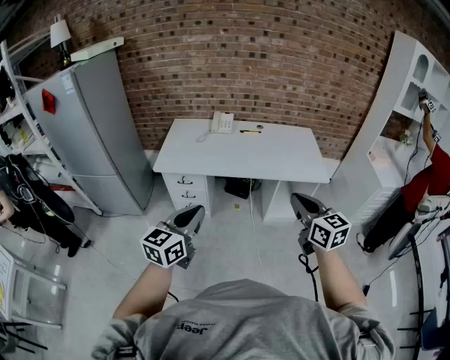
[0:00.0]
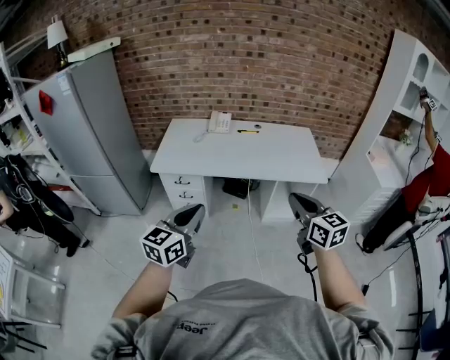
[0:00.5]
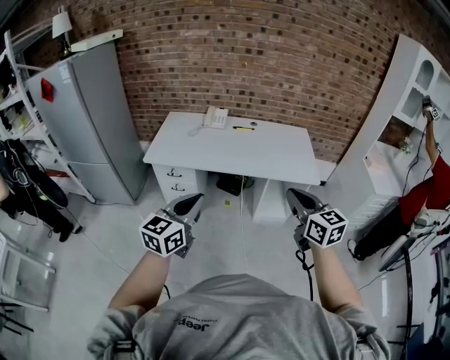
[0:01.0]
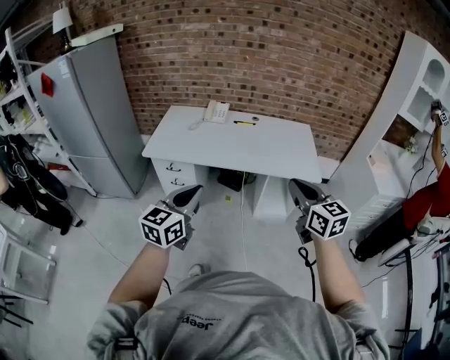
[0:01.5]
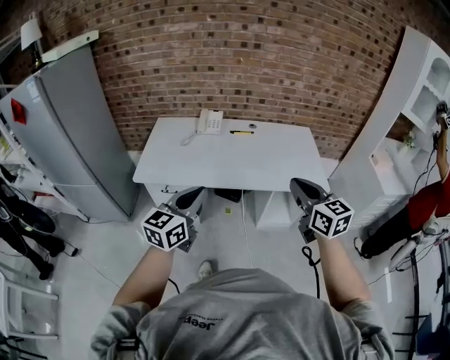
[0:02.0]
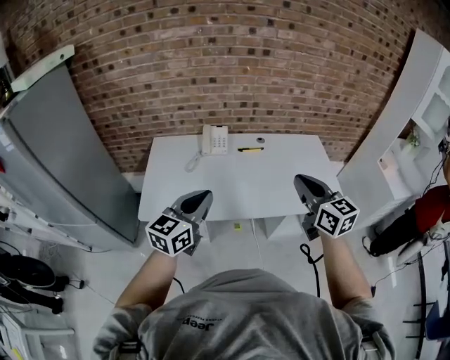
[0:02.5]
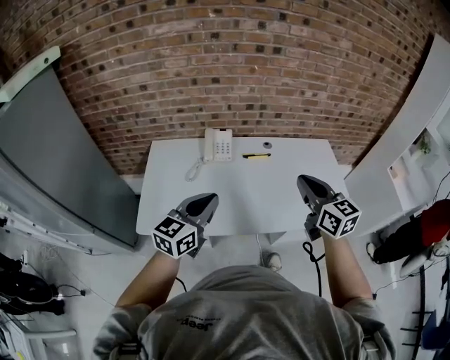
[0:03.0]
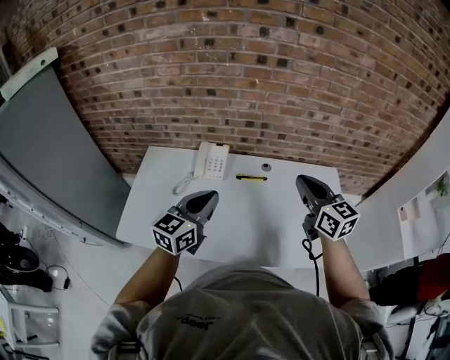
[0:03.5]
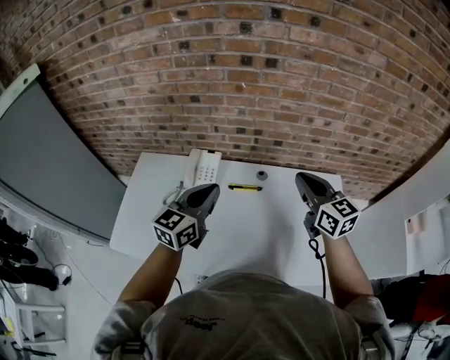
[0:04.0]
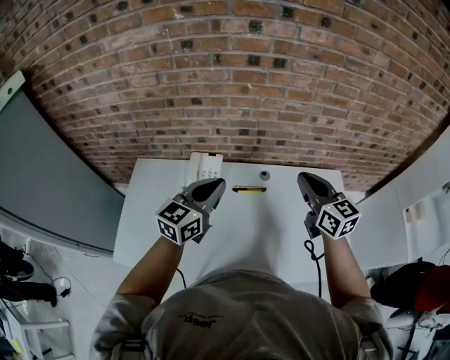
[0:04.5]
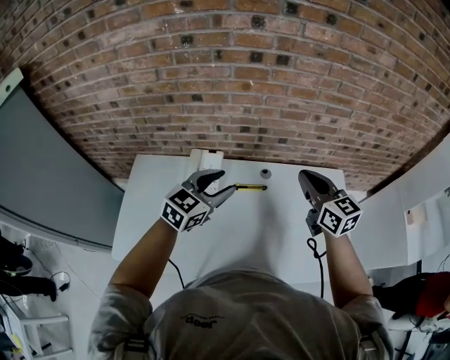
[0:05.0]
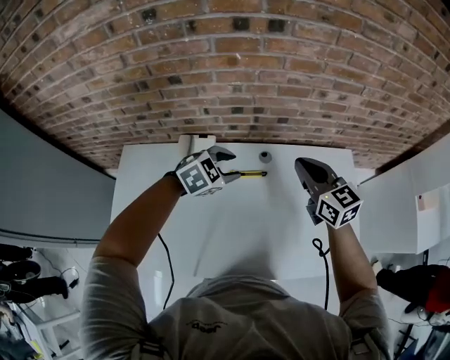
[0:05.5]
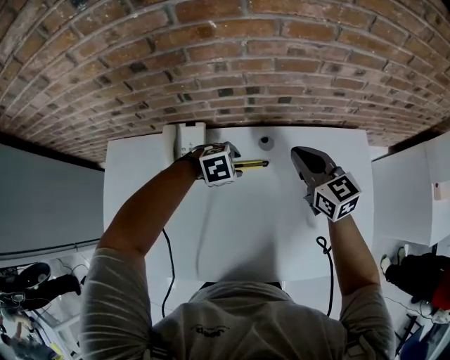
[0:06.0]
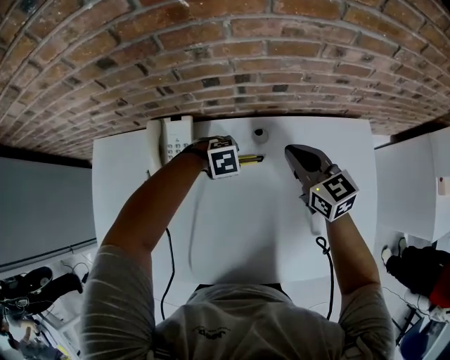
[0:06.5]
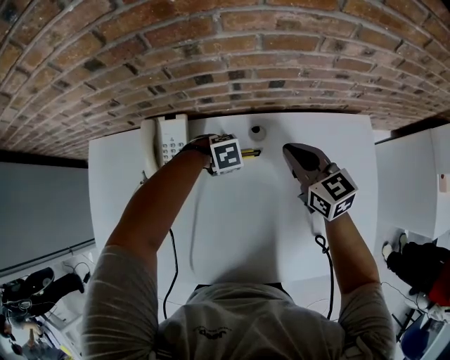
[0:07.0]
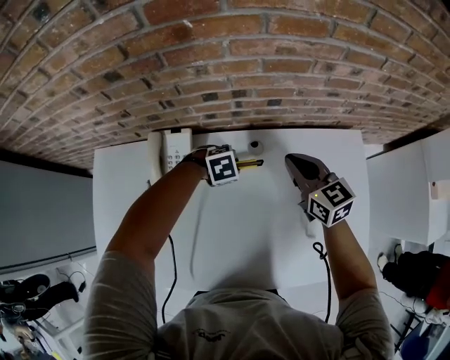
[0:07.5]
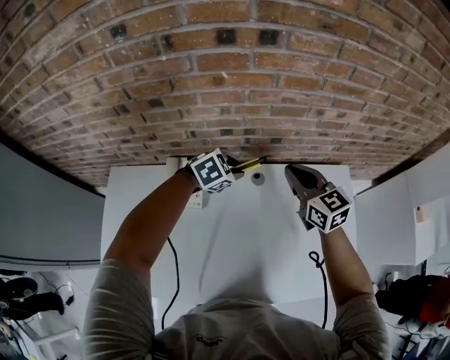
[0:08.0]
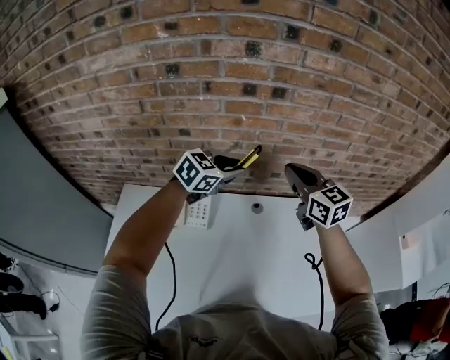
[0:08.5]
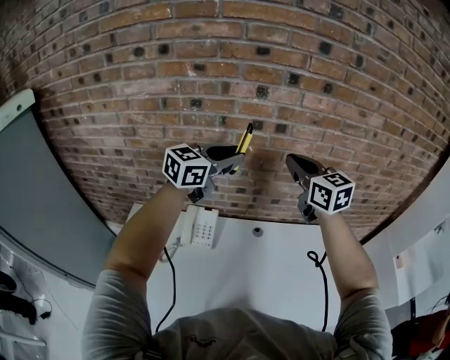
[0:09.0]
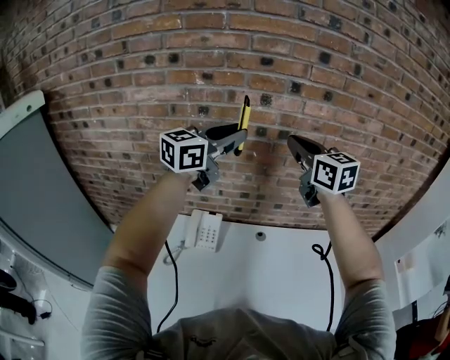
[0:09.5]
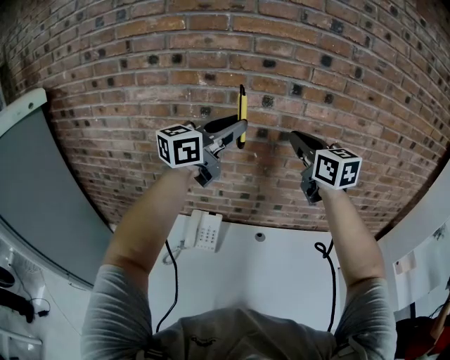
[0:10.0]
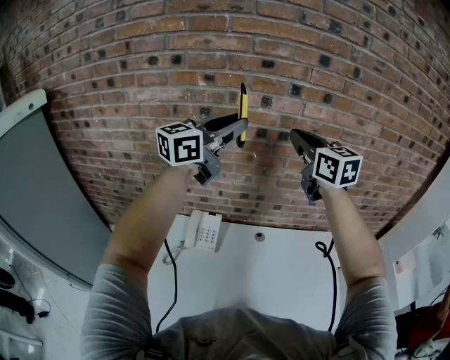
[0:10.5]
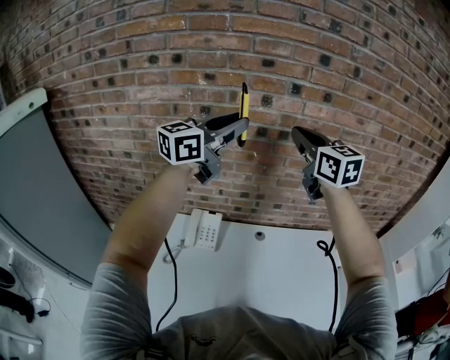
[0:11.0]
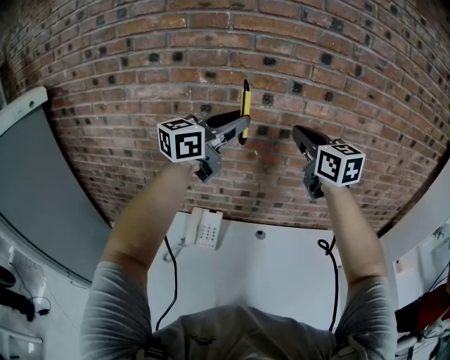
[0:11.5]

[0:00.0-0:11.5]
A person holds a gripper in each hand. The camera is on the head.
0:00.0 to 0:02.0: Both grippers move forward, some 20 cm.
0:02.0 to 0:04.0: The pair of grippers is taken forward, approximately 60 cm.
0:04.0 to 0:06.0: The right gripper moves downward, approximately 20 cm; the left gripper moves downward, some 30 cm, angles its fingers downward, by about 60 degrees, and opens up.
0:06.0 to 0:07.5: The left gripper shifts about 5 cm downward.
0:07.5 to 0:09.5: Both grippers travel together upward, roughly 50 cm. The right gripper turns by approximately 20 degrees, while the left gripper points its fingers approximately 80 degrees further upward.
0:09.5 to 0:11.5: The grippers make only small movements.

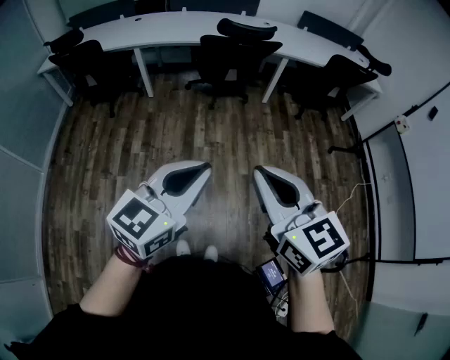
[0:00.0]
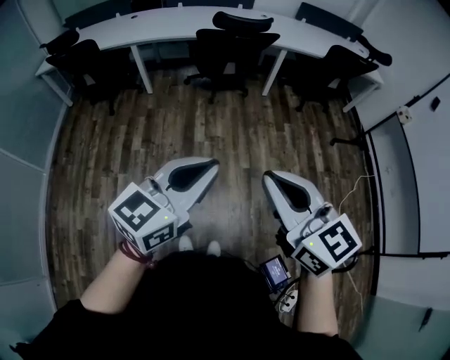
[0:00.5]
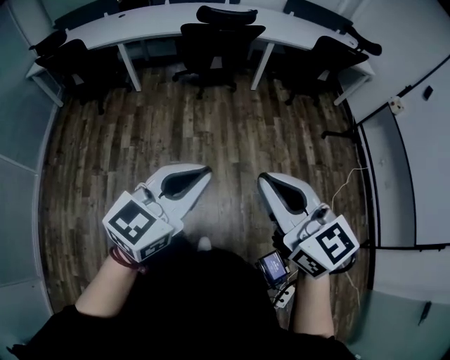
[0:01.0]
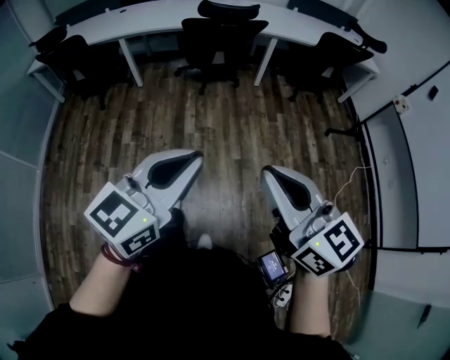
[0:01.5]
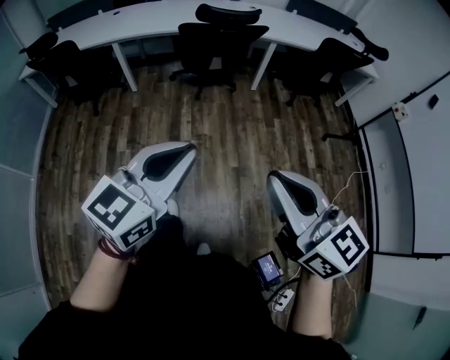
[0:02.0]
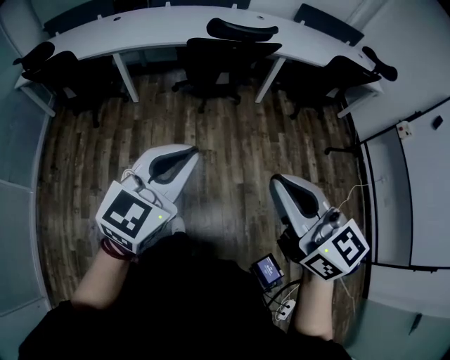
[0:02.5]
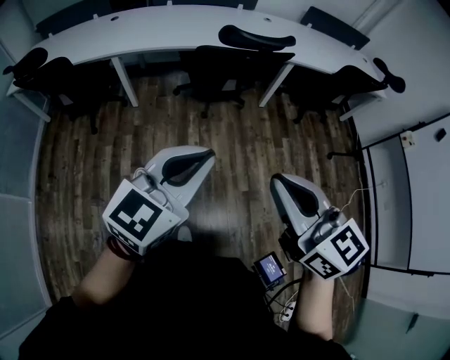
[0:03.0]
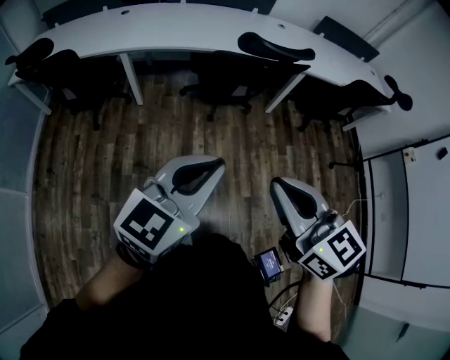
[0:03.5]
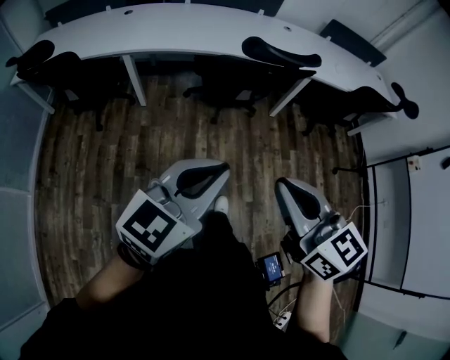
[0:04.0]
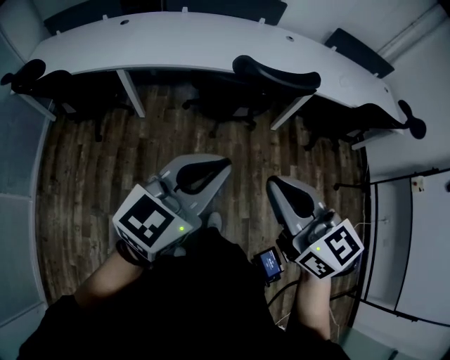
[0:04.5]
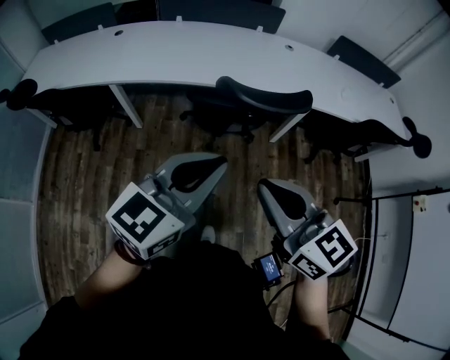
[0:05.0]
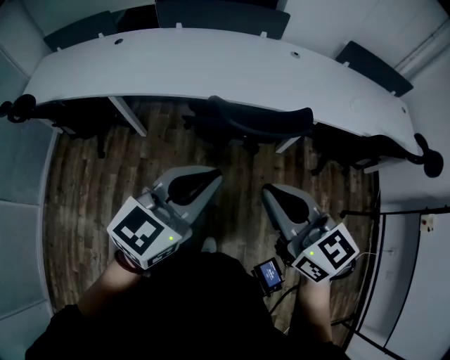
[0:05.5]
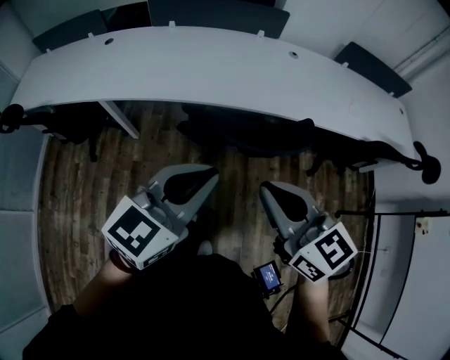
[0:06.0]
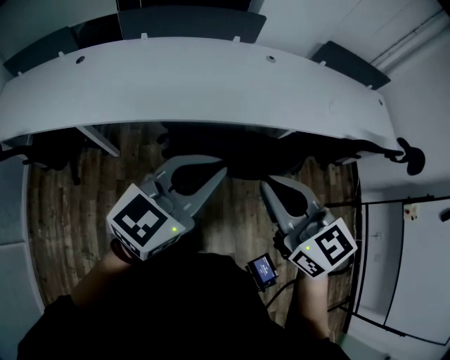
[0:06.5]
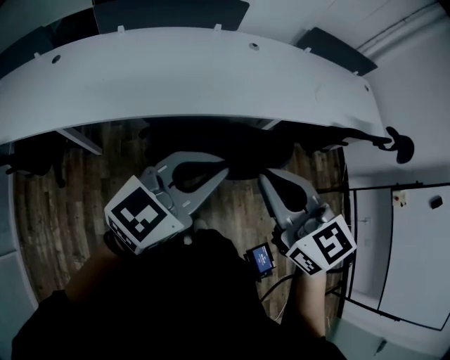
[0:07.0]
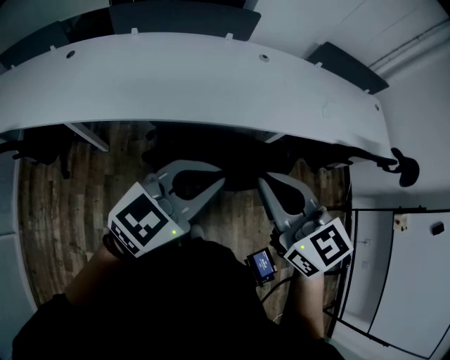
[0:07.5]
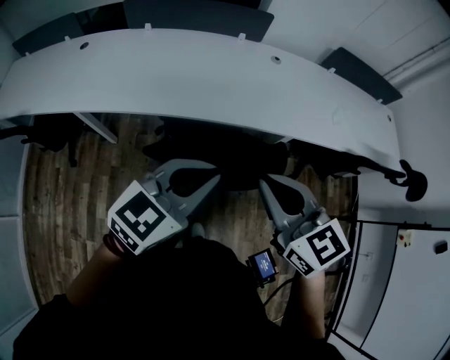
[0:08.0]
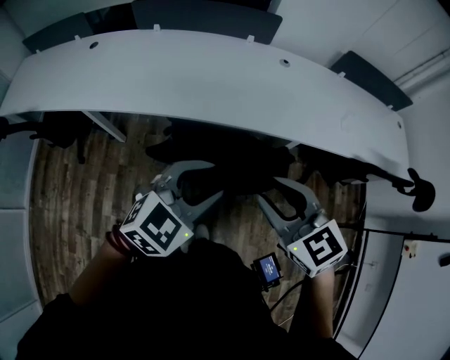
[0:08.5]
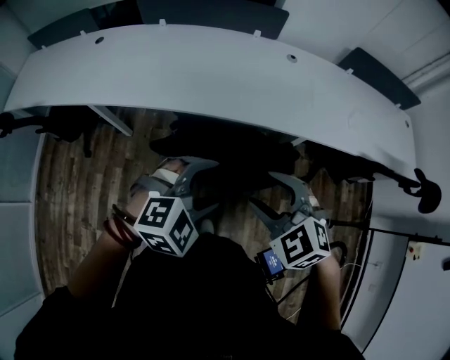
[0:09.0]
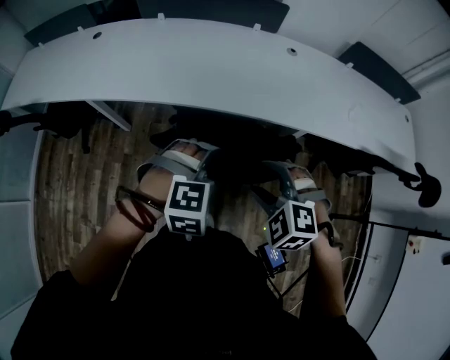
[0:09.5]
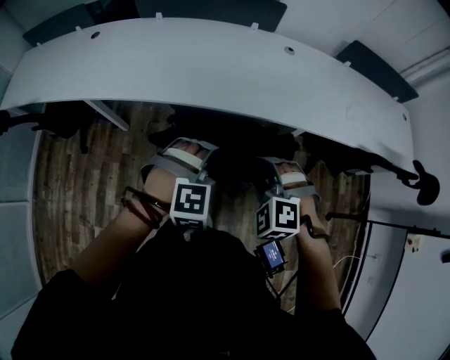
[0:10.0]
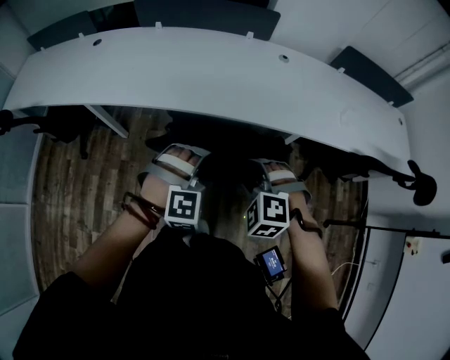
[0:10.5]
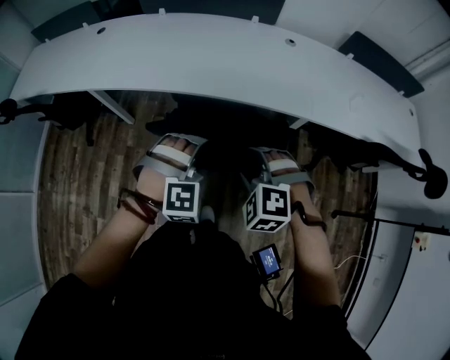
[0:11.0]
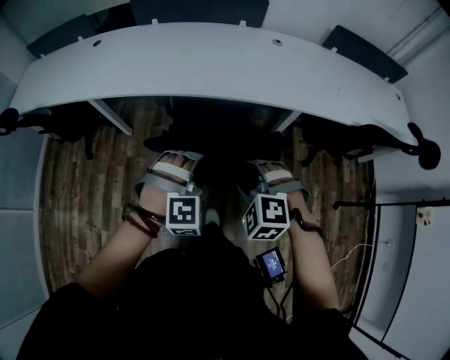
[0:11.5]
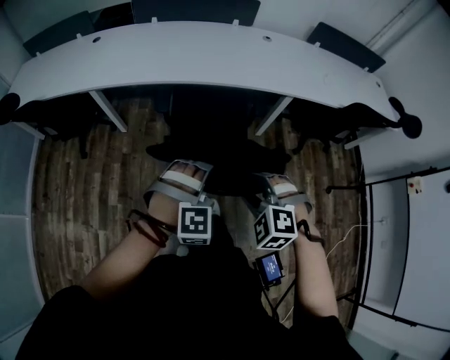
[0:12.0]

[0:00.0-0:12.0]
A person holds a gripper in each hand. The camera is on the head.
0:00.0 to 0:02.0: The right gripper travels to the right by roughly 10 cm. The left gripper is displaced forward by roughly 10 cm.
0:02.0 to 0:04.0: The two grippers go roughly 35 cm forward and to the left.
0:04.0 to 0:06.0: The pair of grippers is taken forward, roughly 40 cm.
0:06.0 to 0:08.0: Both grippers travel together forward and to the right, roughly 15 cm.
0:08.0 to 0:10.0: Both grippers travel together downward, roughly 15 cm. The right gripper rolls counterclockwise, seen from behind, by some 60 degrees, and opens. The left gripper tilts its fingers approximately 40 degrees downward, and opens up.
0:10.0 to 0:12.0: Both grippers move backward, roughly 30 cm.

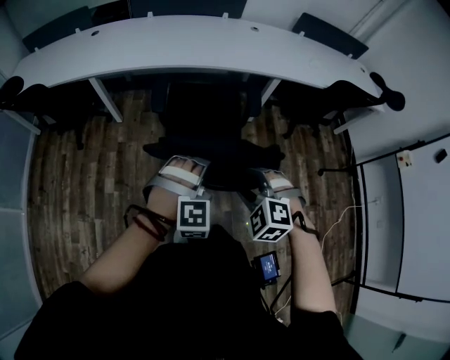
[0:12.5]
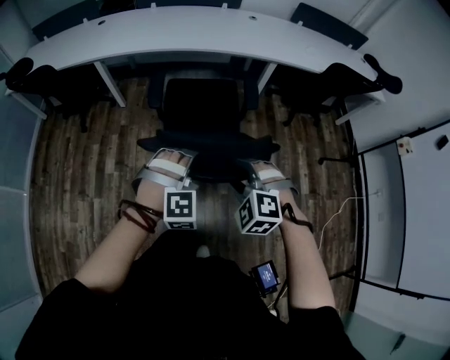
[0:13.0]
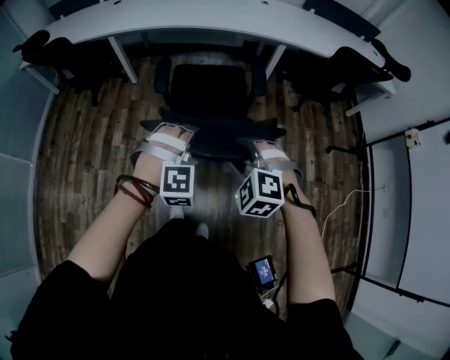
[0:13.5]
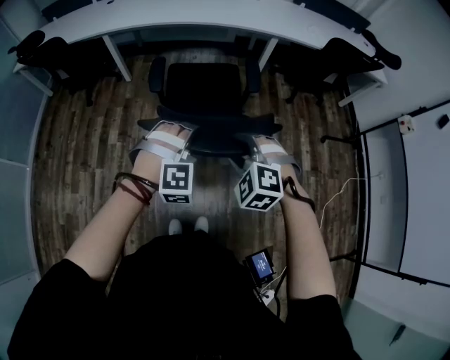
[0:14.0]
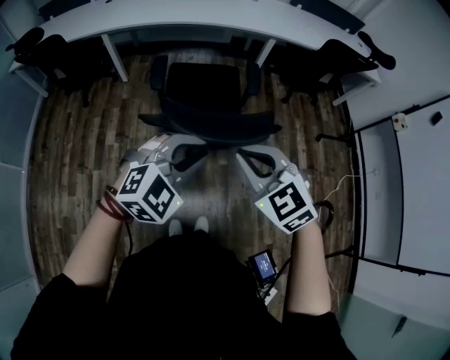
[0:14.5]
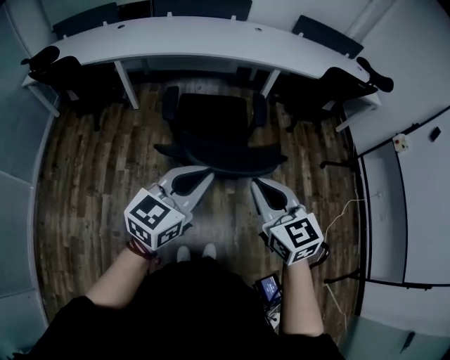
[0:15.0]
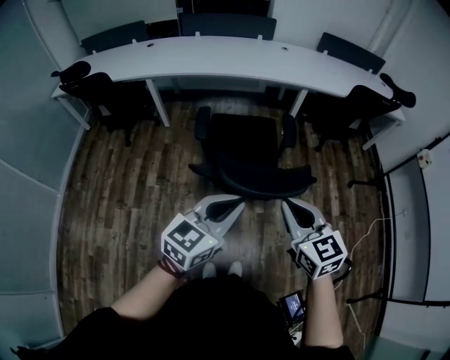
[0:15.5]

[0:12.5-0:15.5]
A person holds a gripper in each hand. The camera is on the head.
0:12.5 to 0:14.0: The two grippers go roughly 25 cm backward.
0:14.0 to 0:15.5: Both grippers move upward and backward, roughly 15 cm. The right gripper rolls clockwise, seen from behind, by some 60 degrees, and closes up. The left gripper rolls counterclockwise, seen from behind, by about 80 degrees, and closes its fingers.
